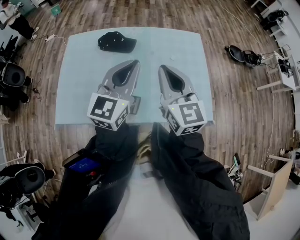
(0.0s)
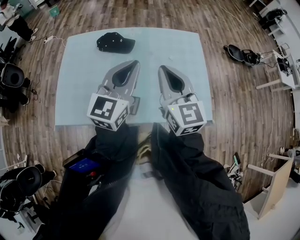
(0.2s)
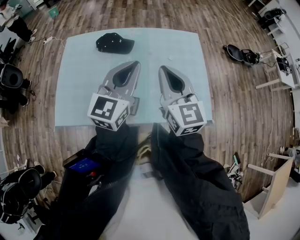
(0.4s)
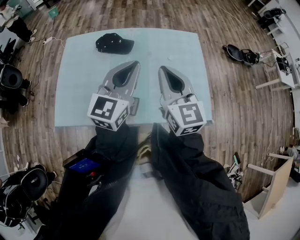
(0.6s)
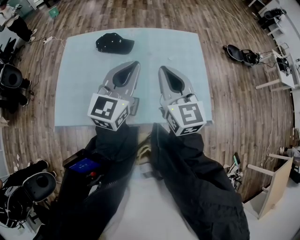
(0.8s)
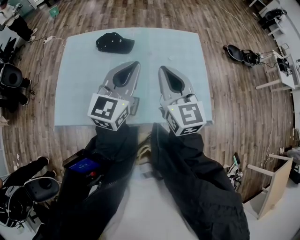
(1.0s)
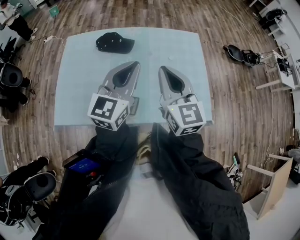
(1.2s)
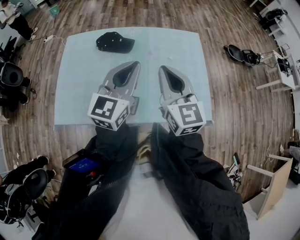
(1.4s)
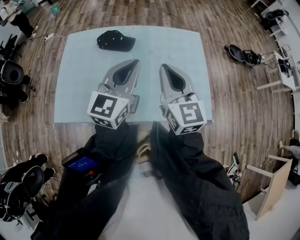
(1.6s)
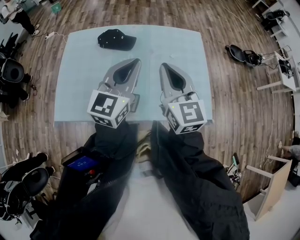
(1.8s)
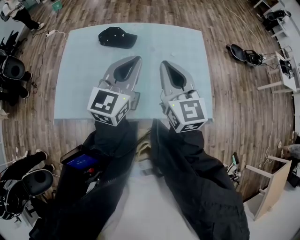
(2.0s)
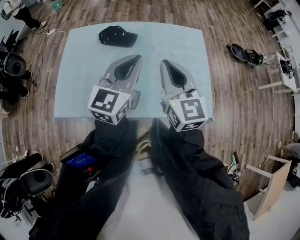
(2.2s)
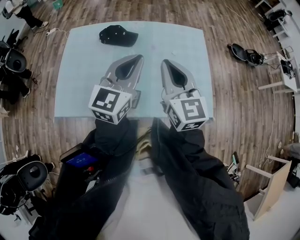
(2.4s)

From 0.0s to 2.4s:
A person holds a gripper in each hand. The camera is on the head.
From 0.0s to 2.4s: Both grippers stay put.

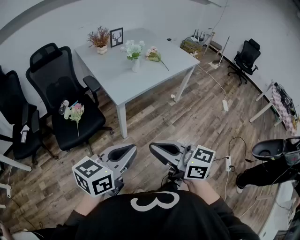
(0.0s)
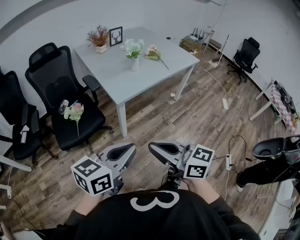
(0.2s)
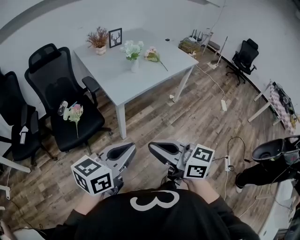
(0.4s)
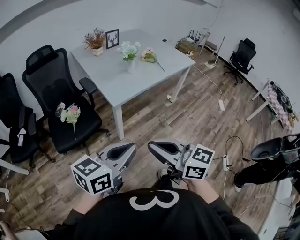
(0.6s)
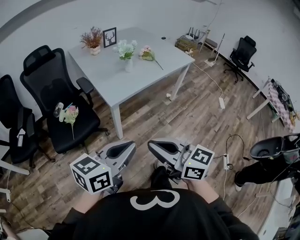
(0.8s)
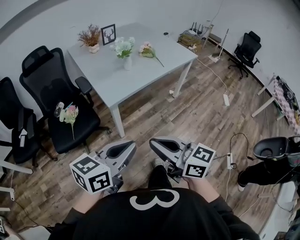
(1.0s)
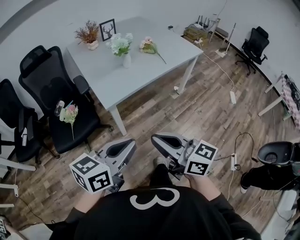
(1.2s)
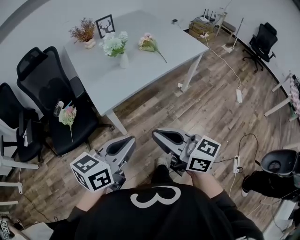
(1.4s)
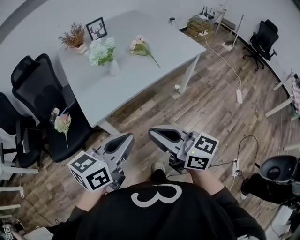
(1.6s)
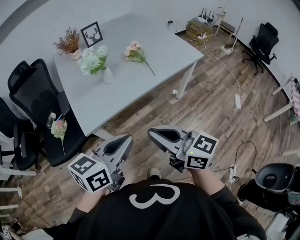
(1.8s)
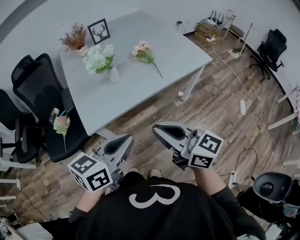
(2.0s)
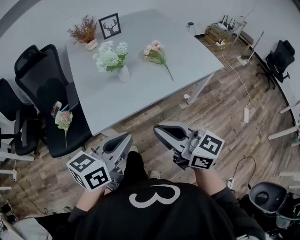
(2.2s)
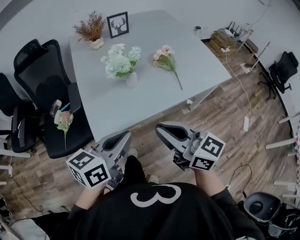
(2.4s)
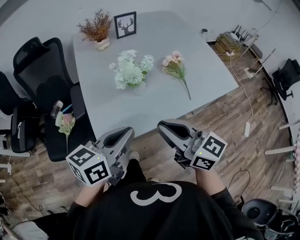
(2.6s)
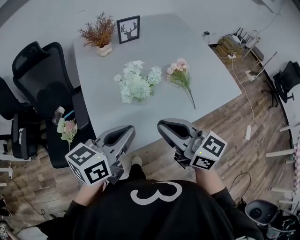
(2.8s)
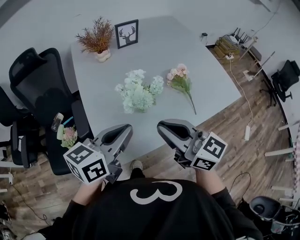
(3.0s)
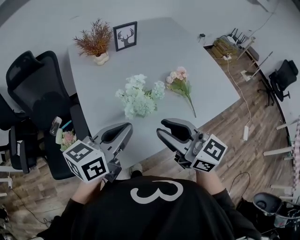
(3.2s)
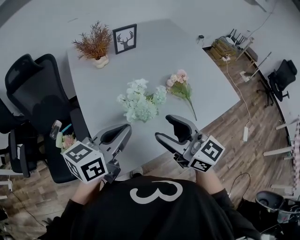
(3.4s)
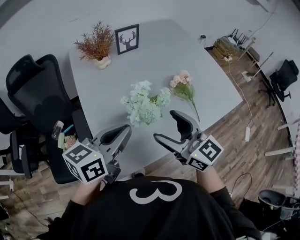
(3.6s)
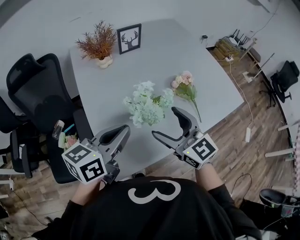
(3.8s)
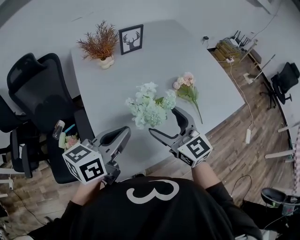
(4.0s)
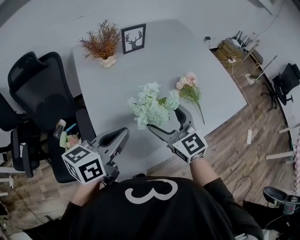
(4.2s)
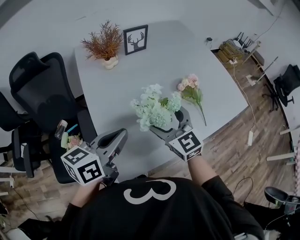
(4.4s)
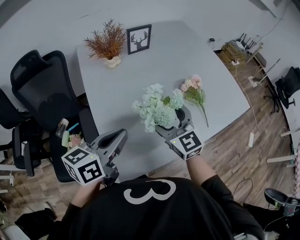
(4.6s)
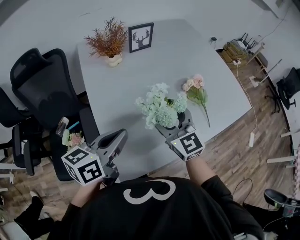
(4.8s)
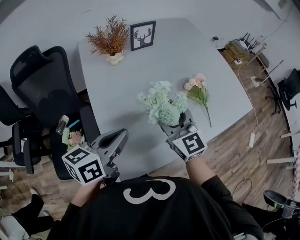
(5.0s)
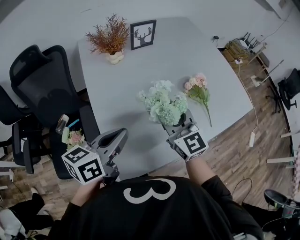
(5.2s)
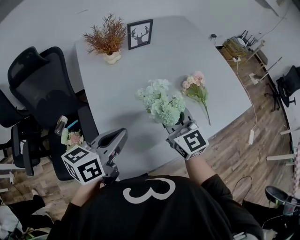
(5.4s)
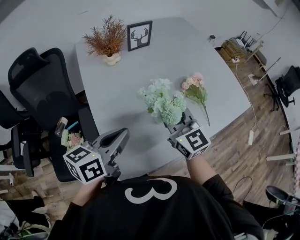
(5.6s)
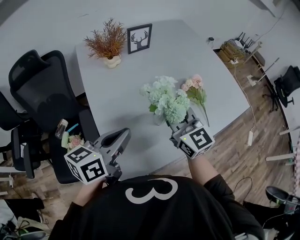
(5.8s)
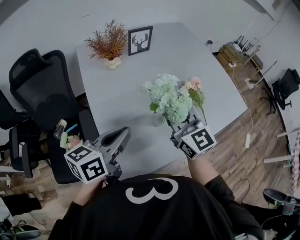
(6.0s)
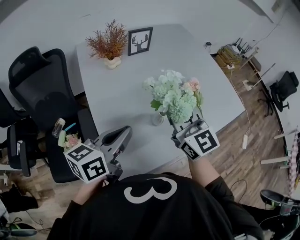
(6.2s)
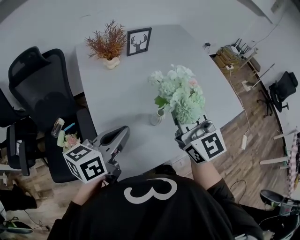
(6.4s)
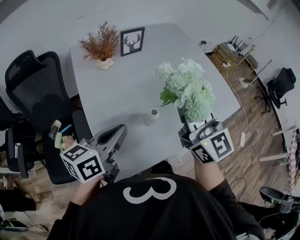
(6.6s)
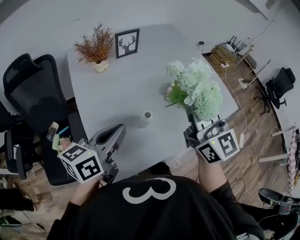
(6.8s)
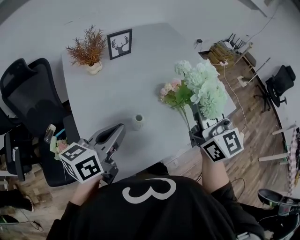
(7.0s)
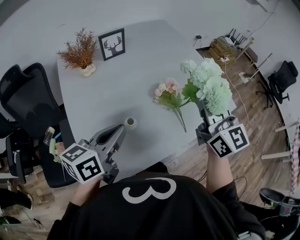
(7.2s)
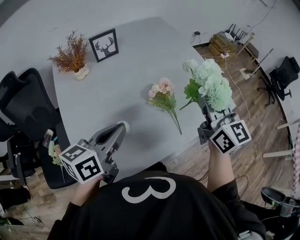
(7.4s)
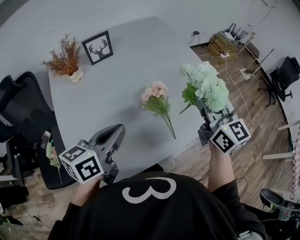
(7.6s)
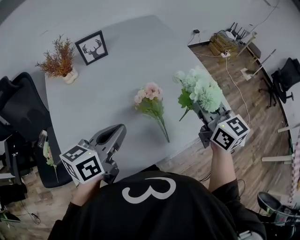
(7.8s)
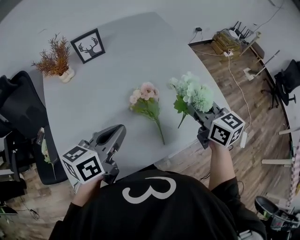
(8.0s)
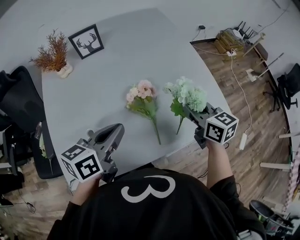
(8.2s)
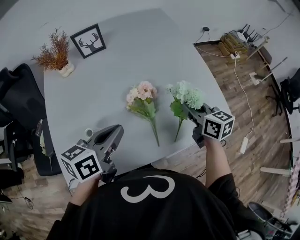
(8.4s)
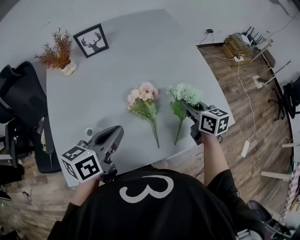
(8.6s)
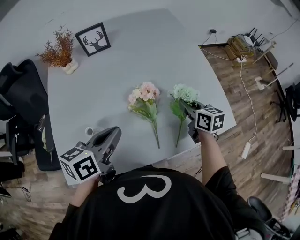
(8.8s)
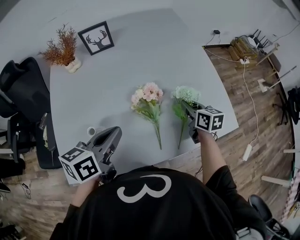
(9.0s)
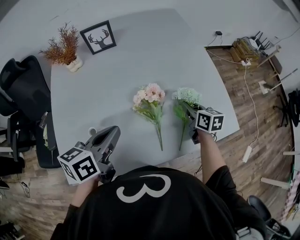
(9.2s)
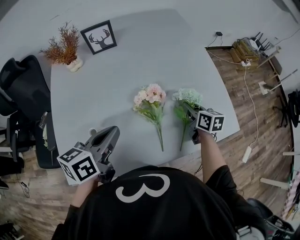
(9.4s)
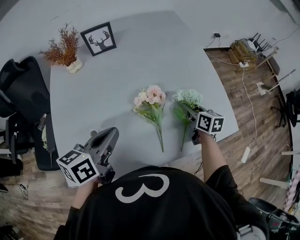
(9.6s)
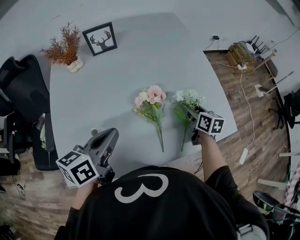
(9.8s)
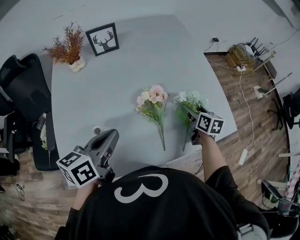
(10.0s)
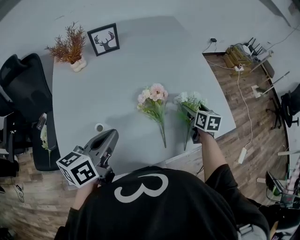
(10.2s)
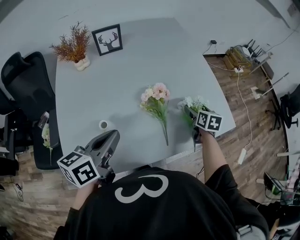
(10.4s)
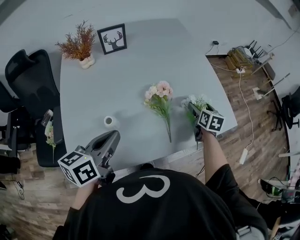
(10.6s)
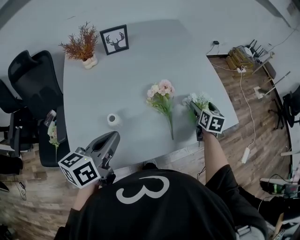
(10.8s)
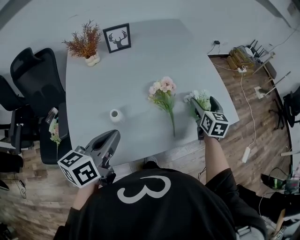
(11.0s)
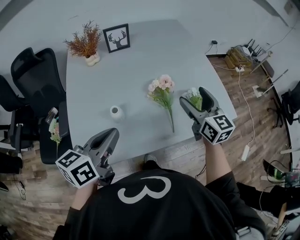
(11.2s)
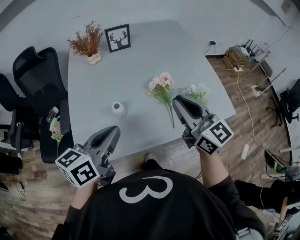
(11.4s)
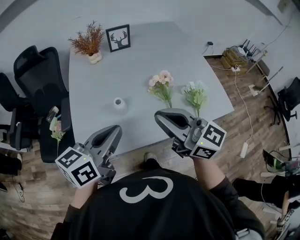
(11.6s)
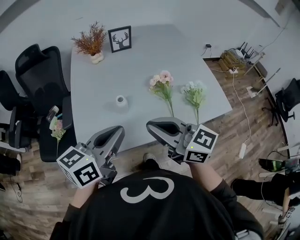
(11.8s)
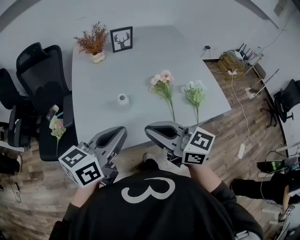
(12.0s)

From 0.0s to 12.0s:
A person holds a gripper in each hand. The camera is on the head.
From 0.0s to 1.6s: Both grippers move forward and to the right, some 30 cm.
From 1.6s to 3.0s: Both grippers move forward, roughly 30 cm.
From 3.0s to 4.4s: The right gripper travels forward and downward by approximately 15 cm, swivels roughly 30 degrees, and opens up. Meanwhile the left gripper is displaced to the left and forward by about 10 cm.
From 4.4s to 6.0s: The right gripper heads upward, covering approximately 5 cm, and closes up.
From 6.0s to 7.6s: The left gripper moves to the right and forward, roughly 20 cm; the right gripper is displaced to the right by approximately 30 cm.
From 7.6s to 9.0s: The right gripper moves downward and forward, roughly 25 cm, and turns by approximately 40 degrees. The left gripper is displaced to the right and downward by approximately 10 cm.
From 9.0s to 10.4s: The right gripper rotates approximately 20 degrees, and opens up. The left gripper travels to the left by roughly 5 cm.
From 10.4s to 12.0s: The left gripper moves approximately 15 cm; the right gripper shifts by approximately 50 cm, points its fingers approximately 40 degrees further upward, and closes up.

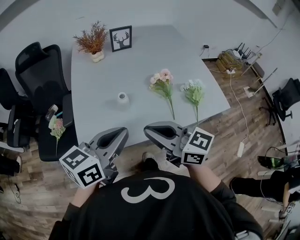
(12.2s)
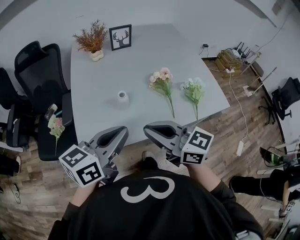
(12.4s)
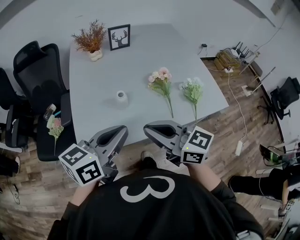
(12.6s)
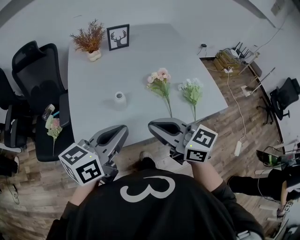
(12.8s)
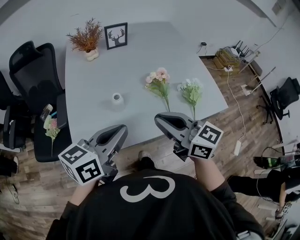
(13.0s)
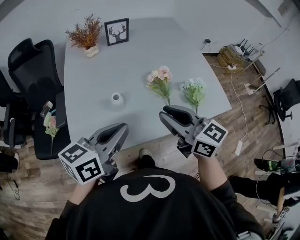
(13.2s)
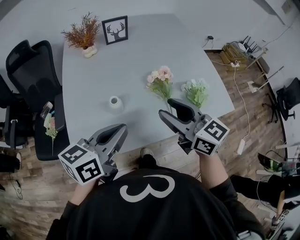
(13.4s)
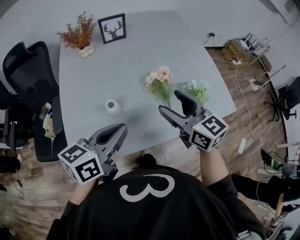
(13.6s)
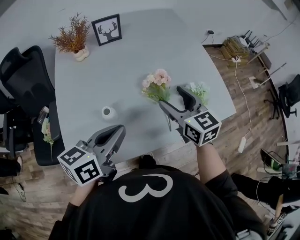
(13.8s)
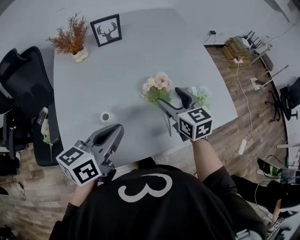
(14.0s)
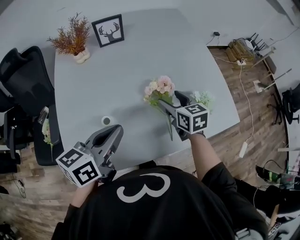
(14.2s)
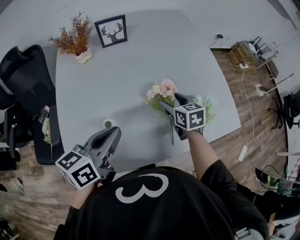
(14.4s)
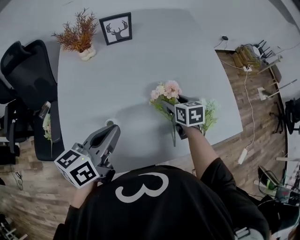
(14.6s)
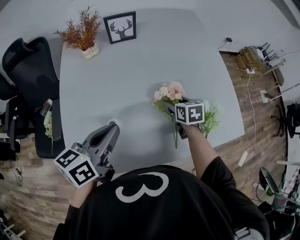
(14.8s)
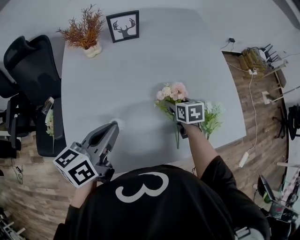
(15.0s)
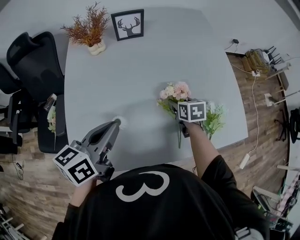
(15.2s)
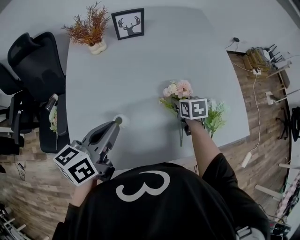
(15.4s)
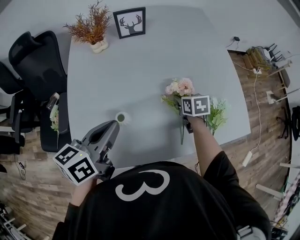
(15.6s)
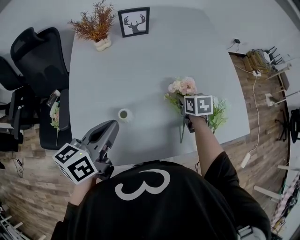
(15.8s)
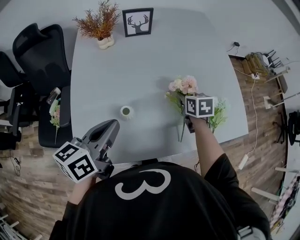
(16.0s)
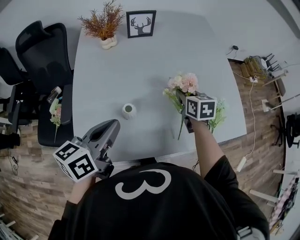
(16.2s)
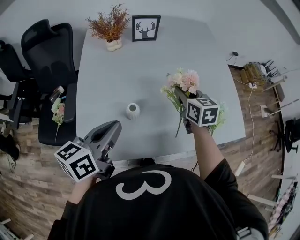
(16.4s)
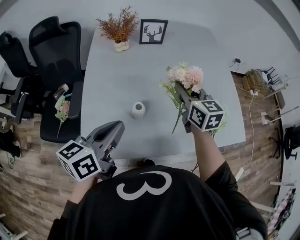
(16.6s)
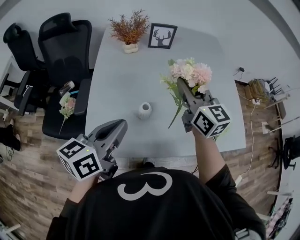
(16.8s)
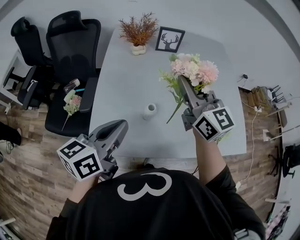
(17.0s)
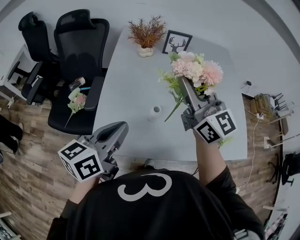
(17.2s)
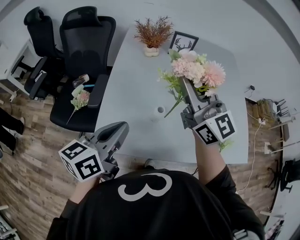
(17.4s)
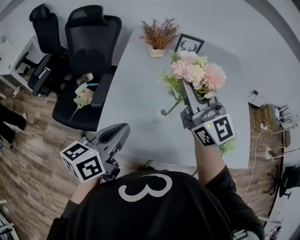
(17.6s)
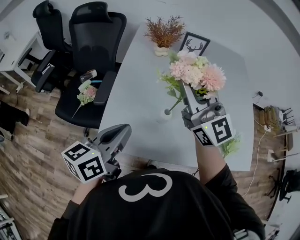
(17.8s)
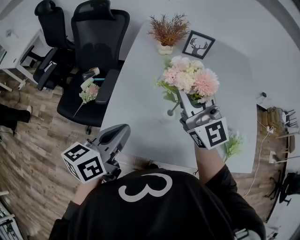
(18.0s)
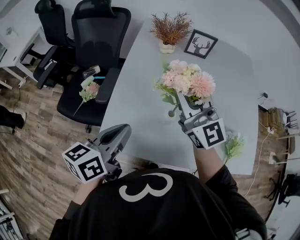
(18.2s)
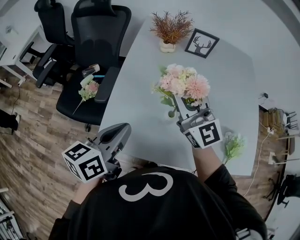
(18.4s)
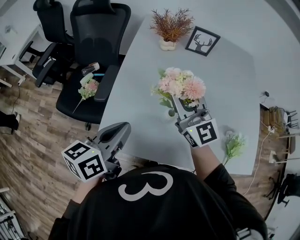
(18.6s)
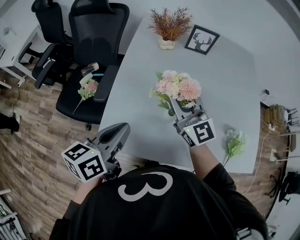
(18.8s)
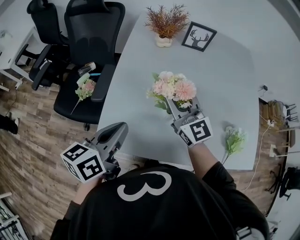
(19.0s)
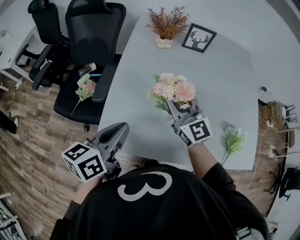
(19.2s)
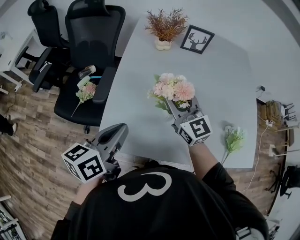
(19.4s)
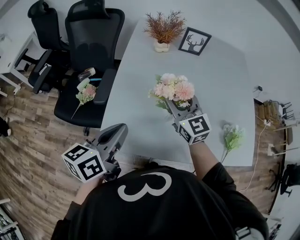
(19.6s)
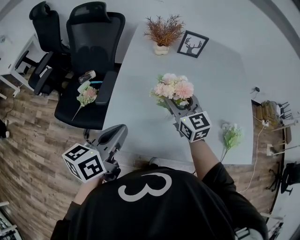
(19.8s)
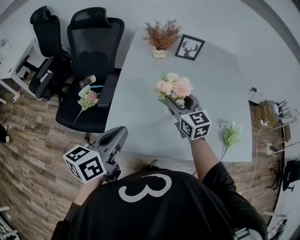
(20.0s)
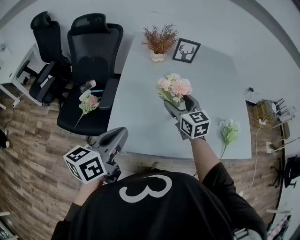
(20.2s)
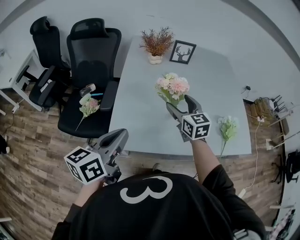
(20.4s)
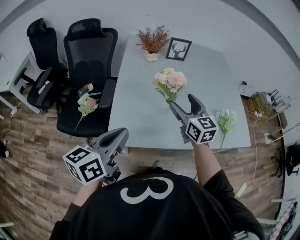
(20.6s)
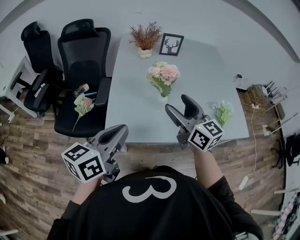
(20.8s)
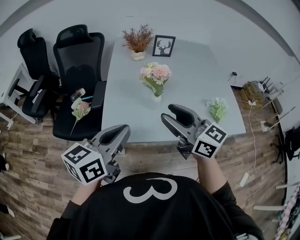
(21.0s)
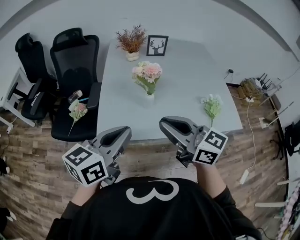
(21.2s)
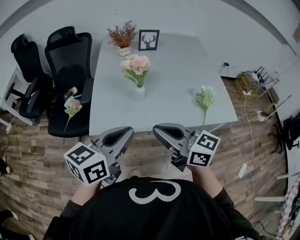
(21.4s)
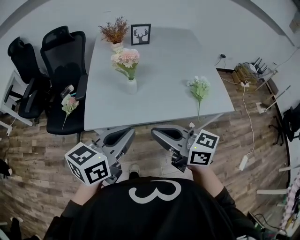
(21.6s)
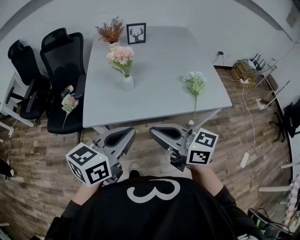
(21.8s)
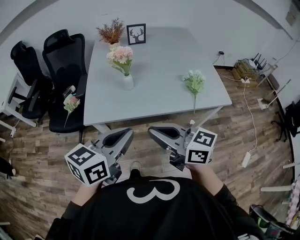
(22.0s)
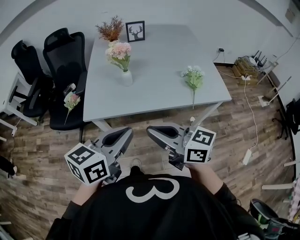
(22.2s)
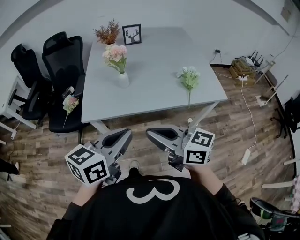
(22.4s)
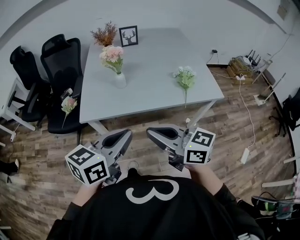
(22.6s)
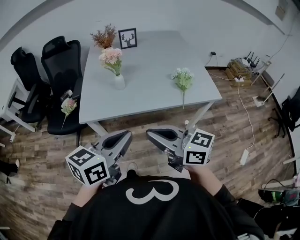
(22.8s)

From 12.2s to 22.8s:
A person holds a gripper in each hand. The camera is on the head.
From 12.2s to 13.8s: The right gripper goes about 25 cm forward and to the right, turns by approximately 30 degrees, and opens up. The left gripper moves forward, downward and to the right, about 15 cm.
From 13.8s to 15.2s: The right gripper shifts approximately 20 cm downward and forward, and tips its fingers downward by about 30 degrees. Meanwhile the left gripper goes approximately 10 cm forward and to the left.
From 15.2s to 16.8s: The right gripper goes roughly 30 cm upward and to the left, angles its fingers upward, by approximately 50 degrees, and closes its fingers. The left gripper moves backward and to the left, roughly 10 cm.
From 16.8s to 18.2s: The left gripper moves to the left, about 5 cm; the right gripper heads to the left, covering roughly 15 cm, and swivels roughly 30 degrees.
From 18.2s to 19.8s: The right gripper is displaced downward by some 10 cm, and rotates approximately 30 degrees.
From 19.8s to 21.2s: The left gripper shifts some 15 cm backward, upward and to the right, and rotates some 20 degrees. The right gripper moves backward and upward, approximately 30 cm, turns by approximately 20 degrees, and closes its fingers.
From 21.2s to 22.8s: Both grippers travel together backward and to the right, some 20 cm.
